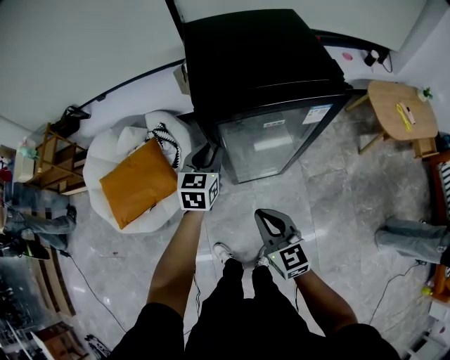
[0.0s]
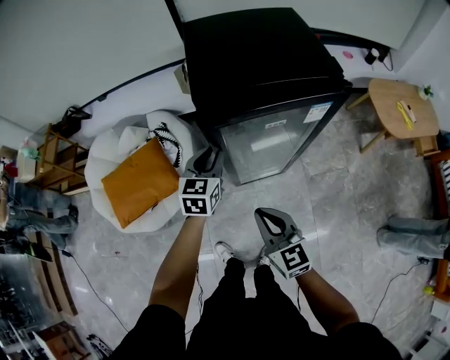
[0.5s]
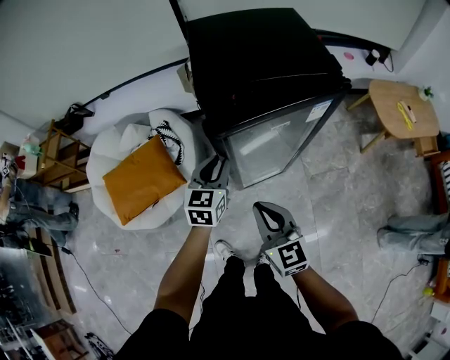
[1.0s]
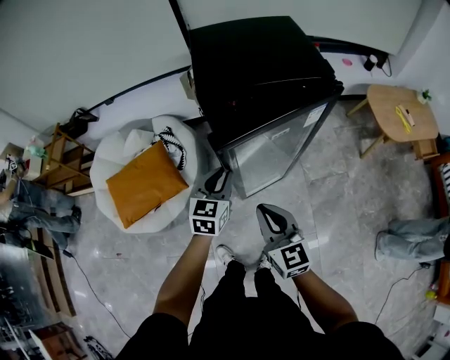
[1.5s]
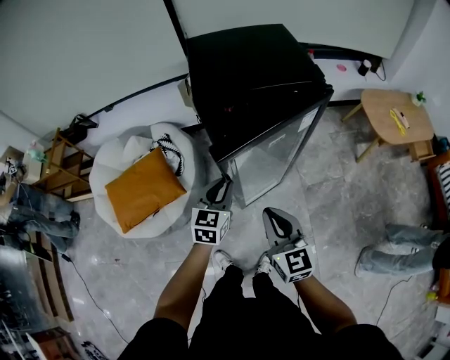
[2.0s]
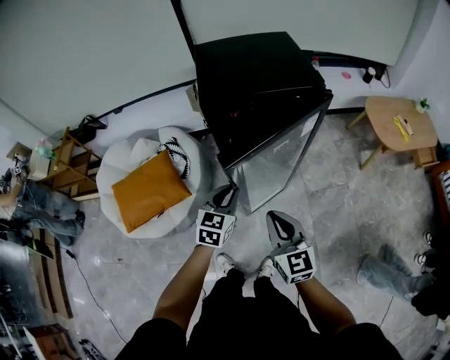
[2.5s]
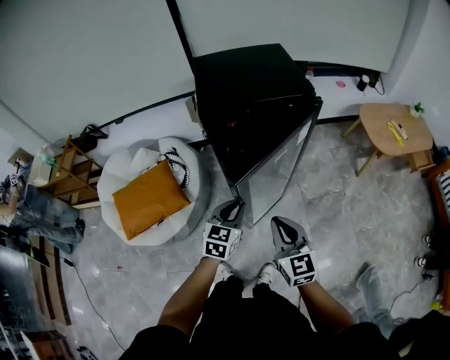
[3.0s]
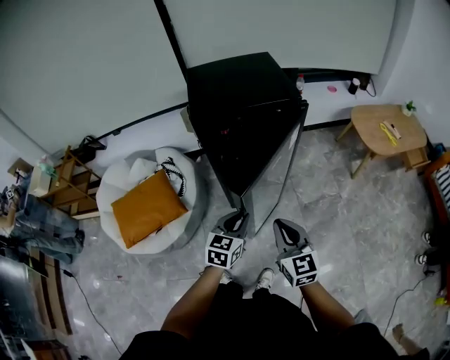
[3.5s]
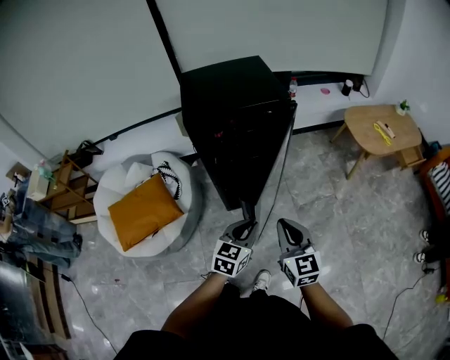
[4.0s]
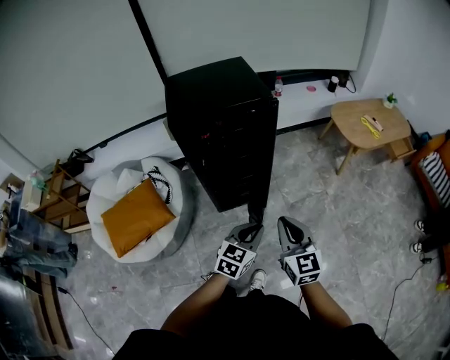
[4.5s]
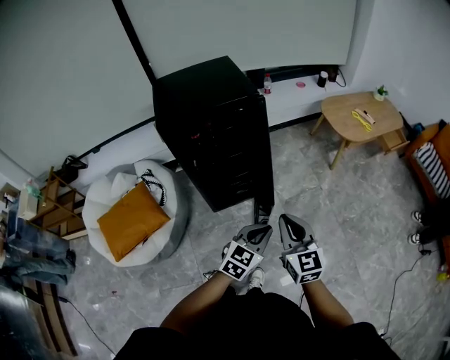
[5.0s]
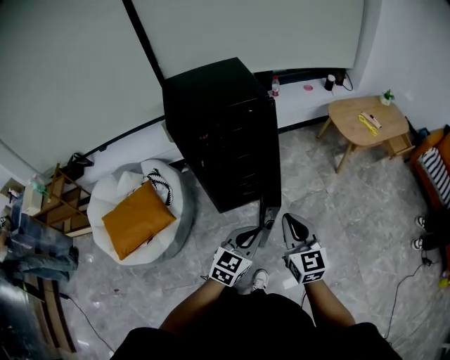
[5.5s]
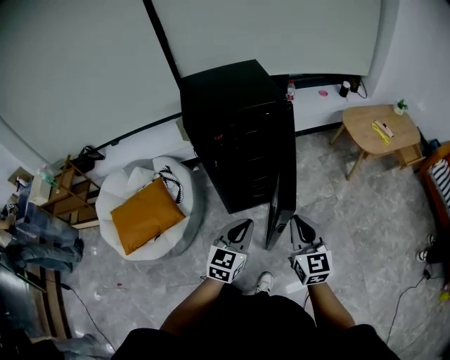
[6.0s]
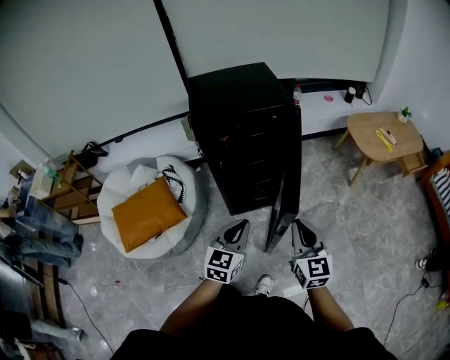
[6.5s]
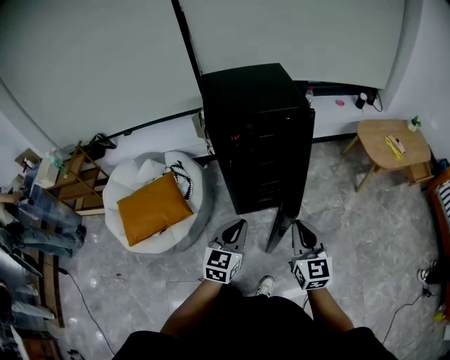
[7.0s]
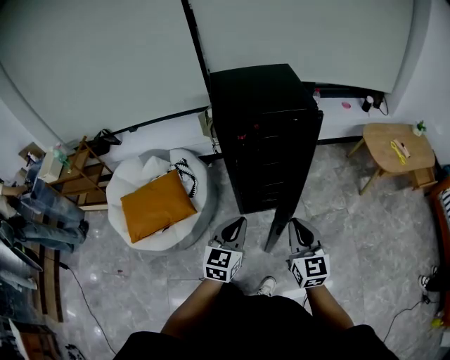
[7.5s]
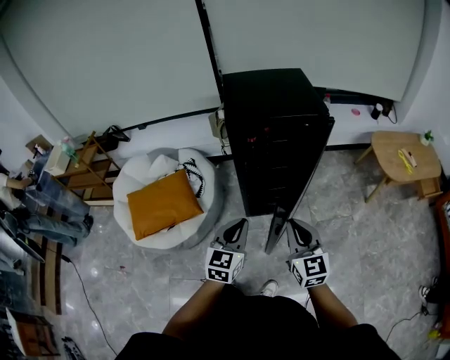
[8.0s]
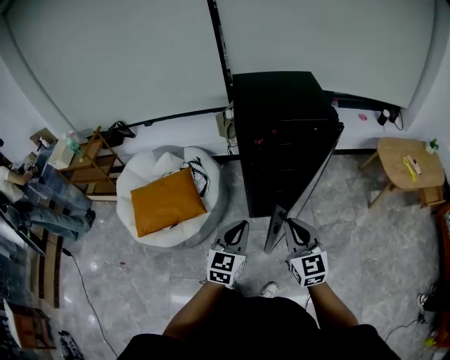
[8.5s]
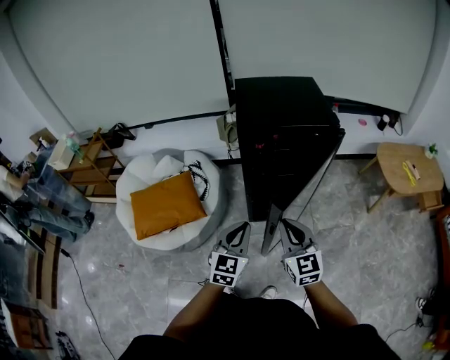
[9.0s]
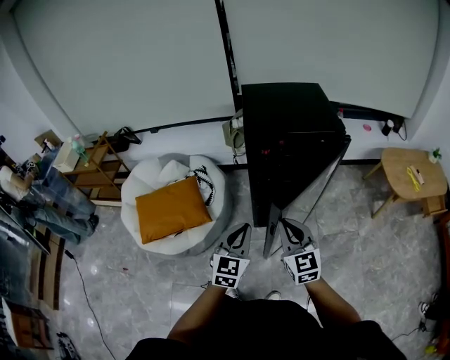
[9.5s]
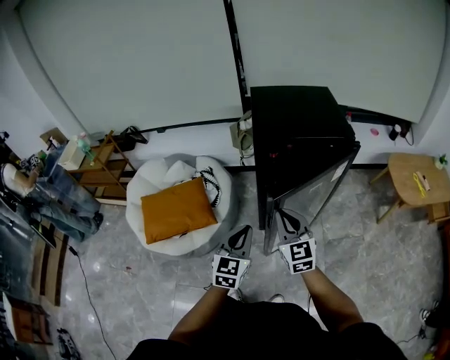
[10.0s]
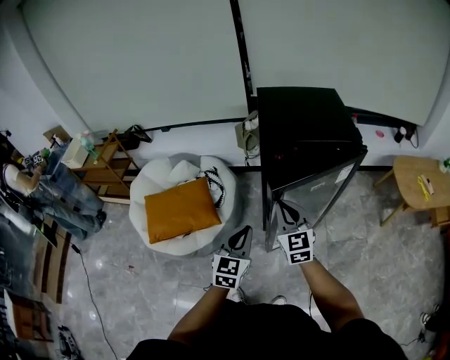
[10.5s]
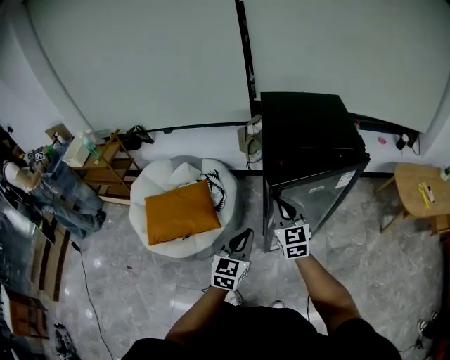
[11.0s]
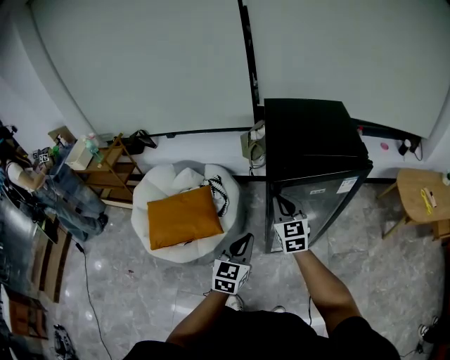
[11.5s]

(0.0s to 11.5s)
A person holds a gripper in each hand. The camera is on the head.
0.0s - 2.0s: The right gripper shifts by about 5 cm. The left gripper goes roughly 10 cm backward.
2.0s - 4.0s: The right gripper is displaced to the right by some 10 cm. Meanwhile the left gripper goes roughly 20 cm to the right and backward.
4.0s - 6.0s: The left gripper goes to the right and returns, some 10 cm each way.
6.0s - 7.5s: The two grippers go roughly 10 cm to the left.
7.5s - 9.5s: The left gripper travels to the left by some 5 cm, while the right gripper moves to the left and forward, some 10 cm.
9.5s - 11.5s: The right gripper is displaced forward by roughly 15 cm. The left gripper ends up about 5 cm from where it was.

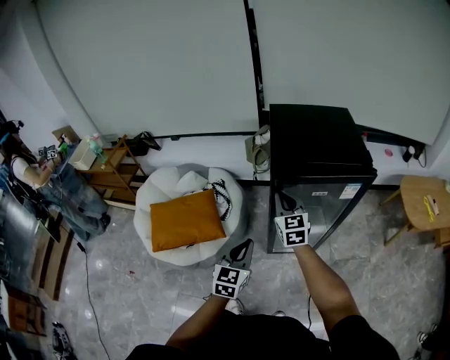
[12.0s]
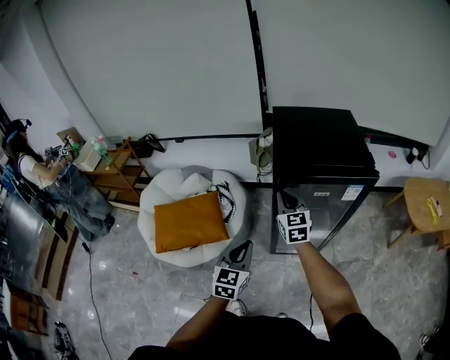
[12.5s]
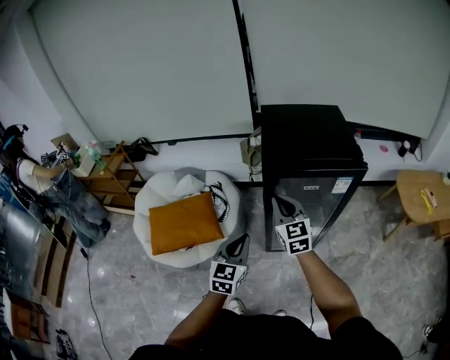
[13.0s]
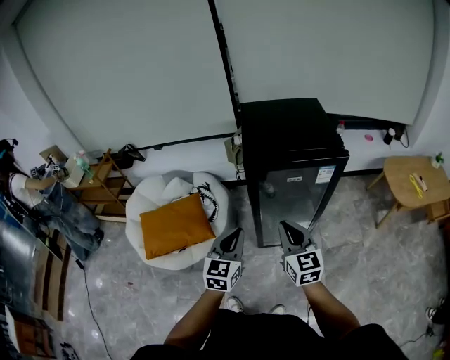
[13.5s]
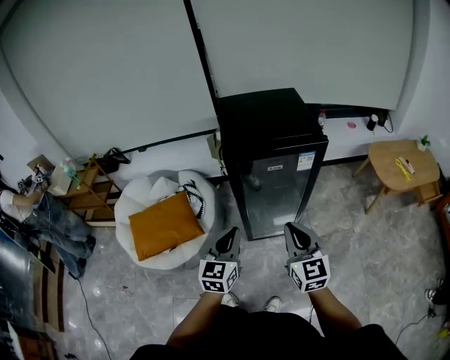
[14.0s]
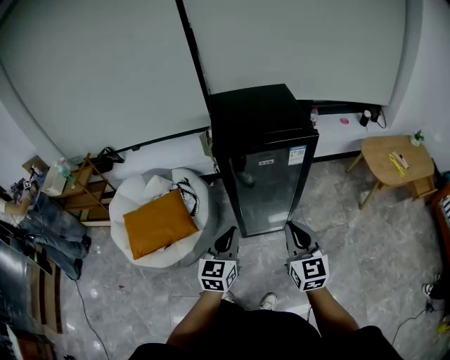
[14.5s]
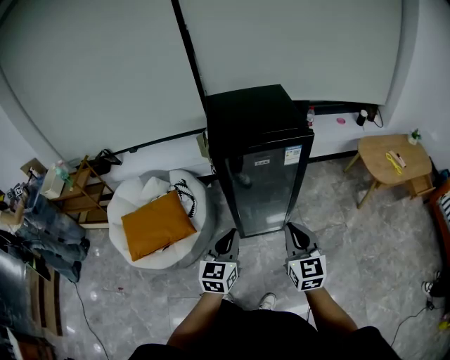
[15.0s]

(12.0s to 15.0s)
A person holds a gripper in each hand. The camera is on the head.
12.0s - 13.5s: The right gripper is displaced backward and to the right by approximately 20 cm. The left gripper travels upward by approximately 5 cm.
13.5s - 15.0s: The right gripper travels to the right and backward by some 15 cm. Meanwhile the left gripper goes roughly 5 cm to the right.

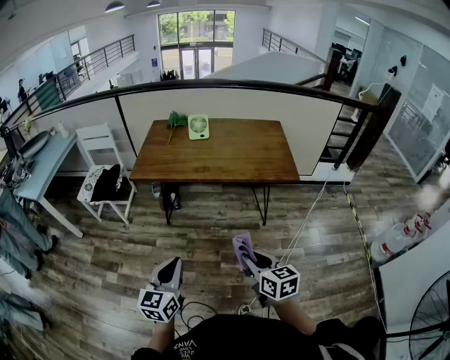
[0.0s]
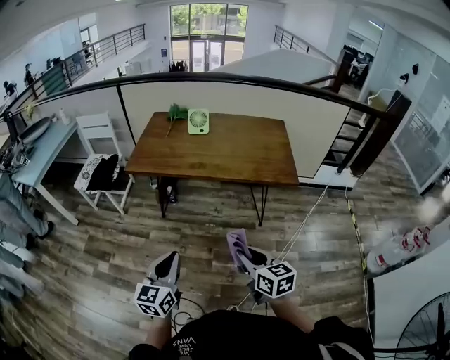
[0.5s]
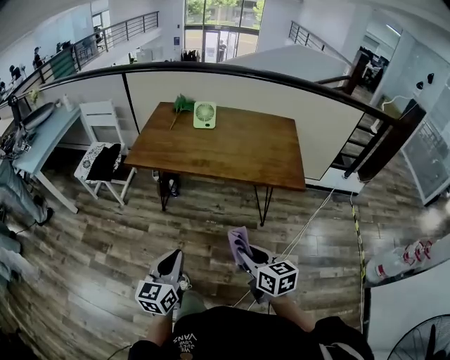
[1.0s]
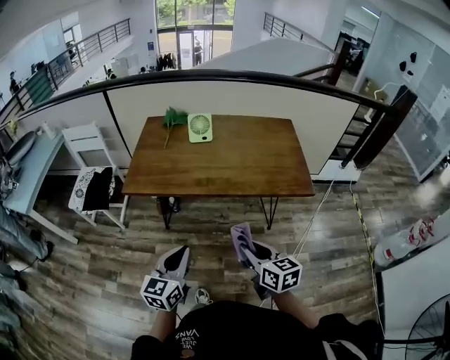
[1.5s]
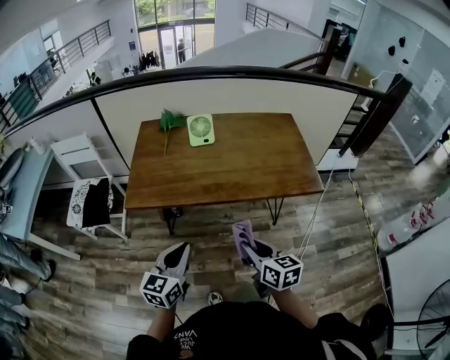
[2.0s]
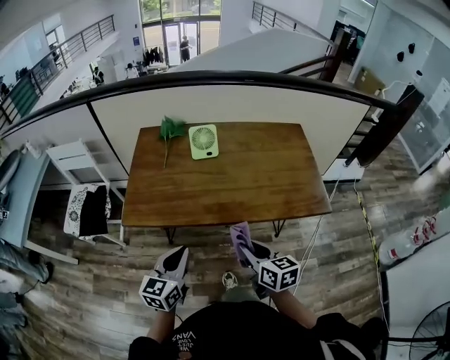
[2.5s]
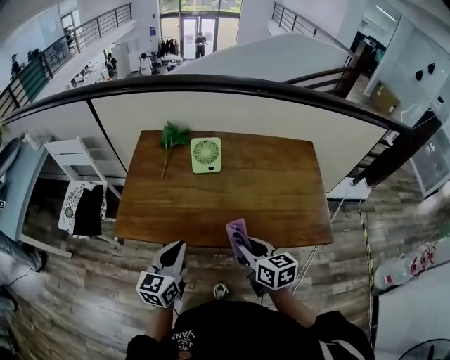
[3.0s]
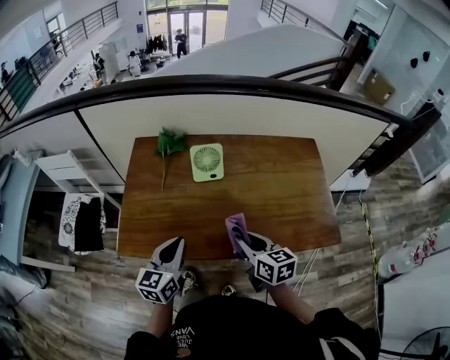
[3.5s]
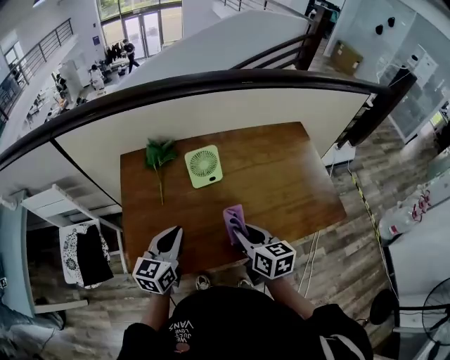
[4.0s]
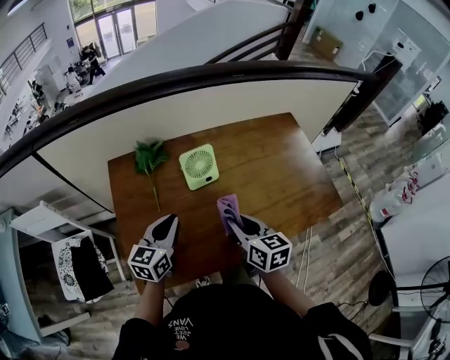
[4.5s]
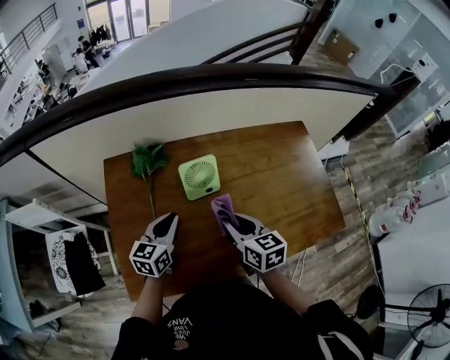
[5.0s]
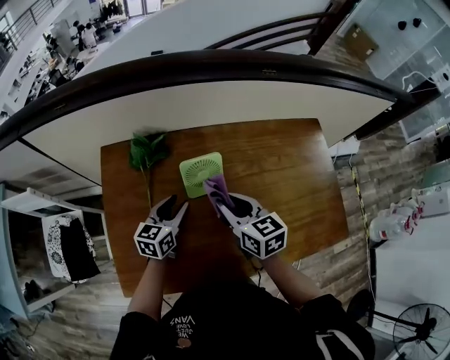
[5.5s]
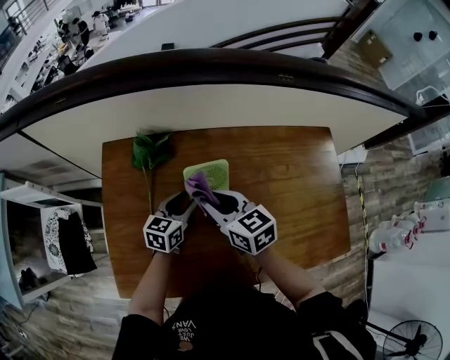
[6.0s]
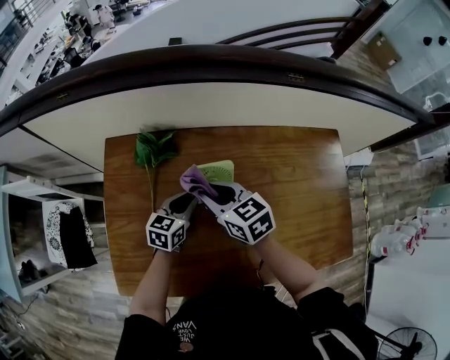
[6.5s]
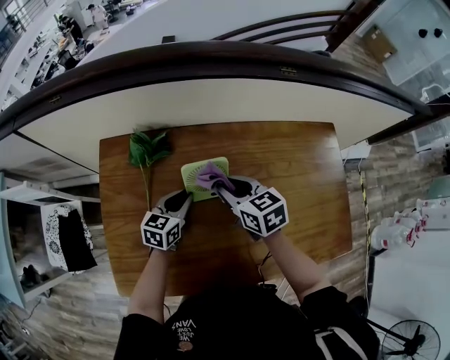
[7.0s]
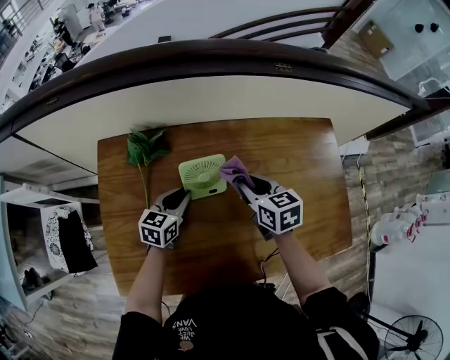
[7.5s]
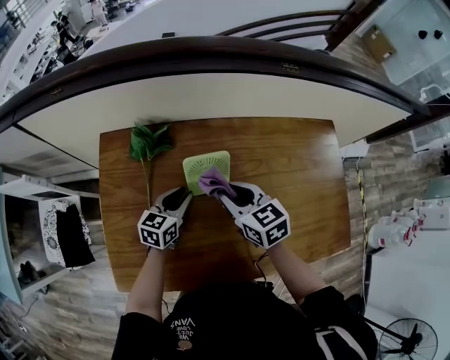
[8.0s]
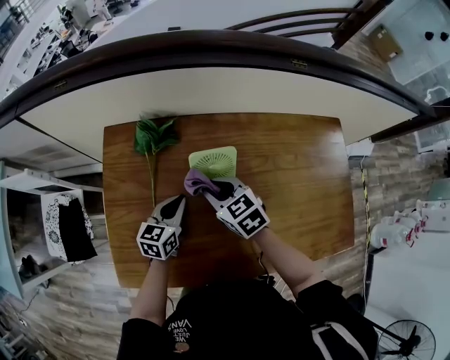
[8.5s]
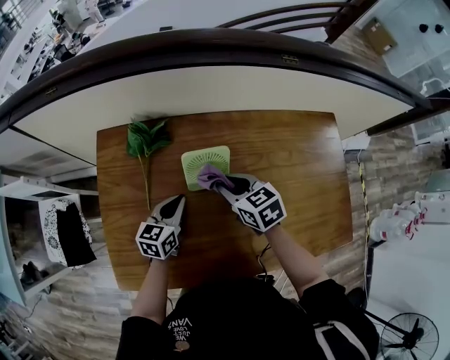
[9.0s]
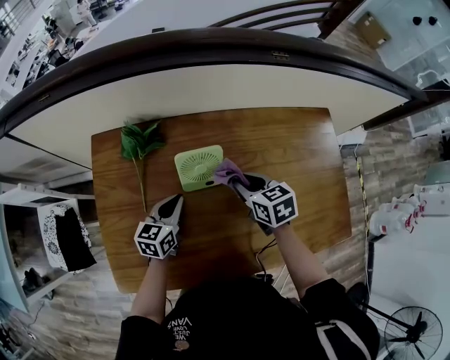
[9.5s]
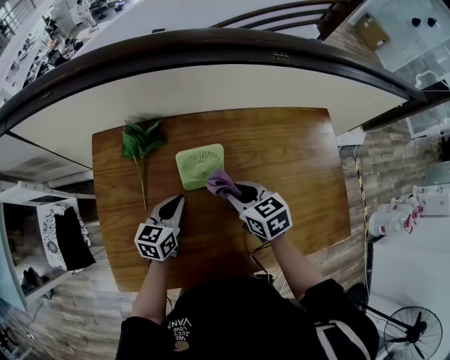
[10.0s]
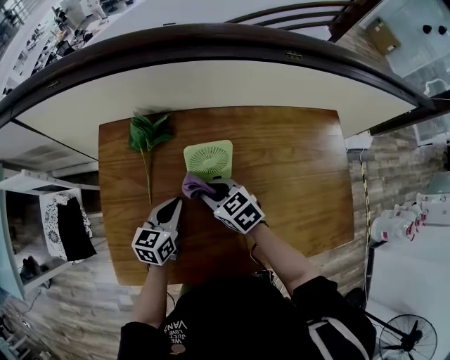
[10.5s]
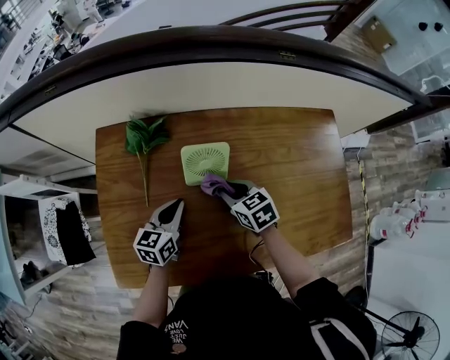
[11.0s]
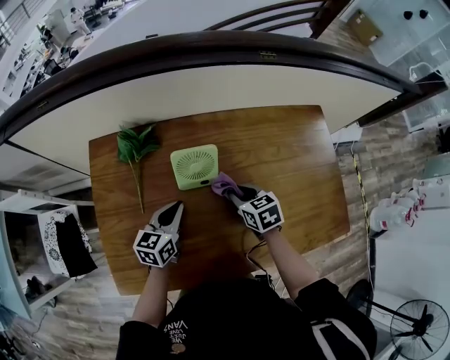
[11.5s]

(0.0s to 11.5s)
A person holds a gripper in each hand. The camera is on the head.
0.0s - 2.0s: Both grippers travel together forward, roughly 25 cm.
2.0s - 4.0s: The two grippers go roughly 35 cm forward.
4.0s - 6.0s: The left gripper heads forward and downward, covering approximately 25 cm, and opens up, while the right gripper shifts about 25 cm forward and to the left, and turns by some 30 degrees.
6.0s - 7.5s: The right gripper moves to the right, approximately 10 cm.
7.5s - 9.5s: The right gripper goes to the left and returns, some 15 cm each way.
9.5s - 11.5s: The right gripper goes to the left and returns, some 15 cm each way.

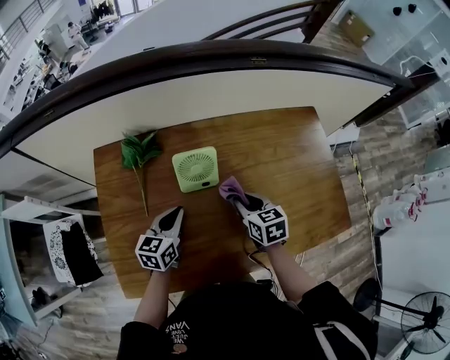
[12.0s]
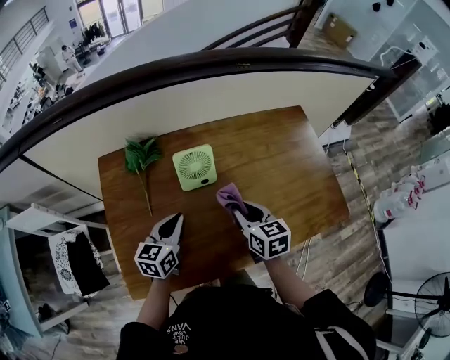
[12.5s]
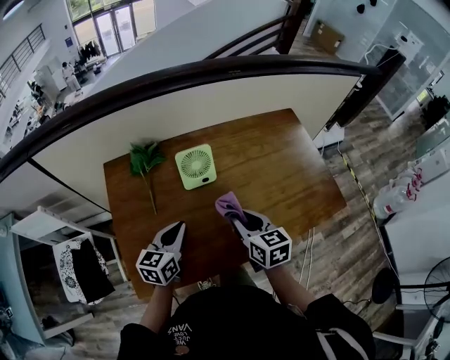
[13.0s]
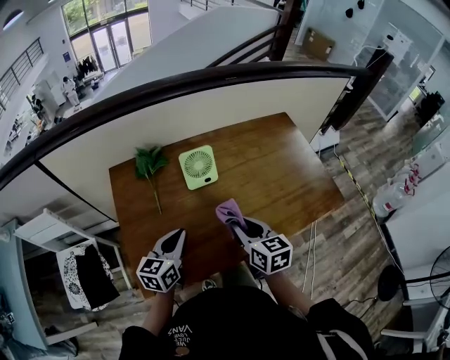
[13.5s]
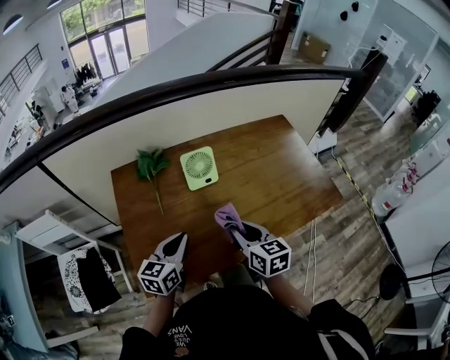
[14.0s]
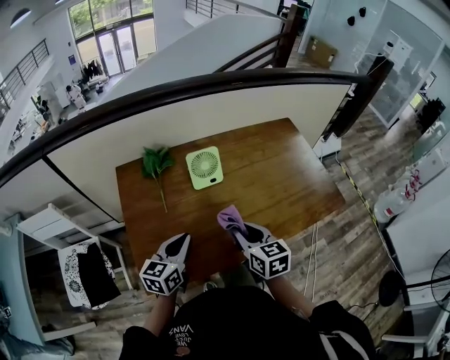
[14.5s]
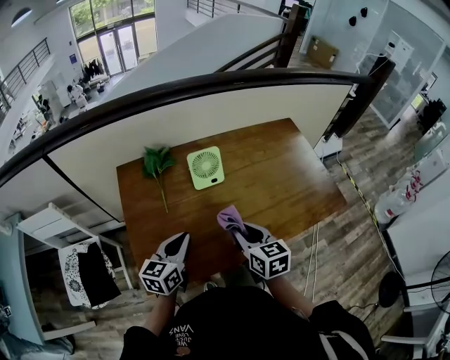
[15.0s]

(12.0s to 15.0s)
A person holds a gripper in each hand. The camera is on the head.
12.0s - 13.5s: The two grippers go roughly 15 cm backward and upward. The right gripper turns by approximately 20 degrees.
13.5s - 15.0s: The grippers stay close to where they were, moving slightly.
